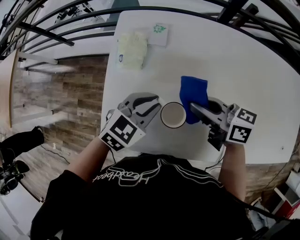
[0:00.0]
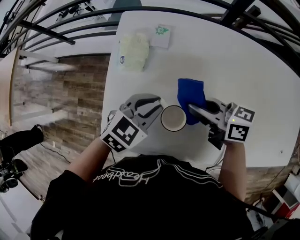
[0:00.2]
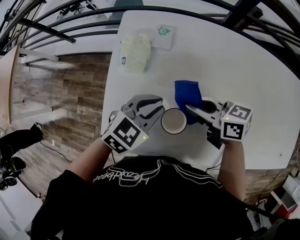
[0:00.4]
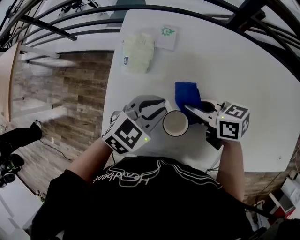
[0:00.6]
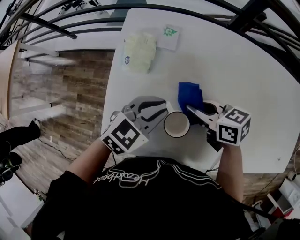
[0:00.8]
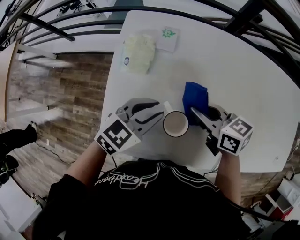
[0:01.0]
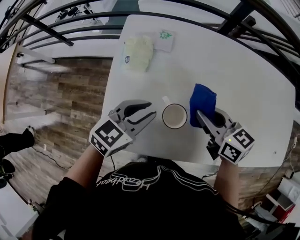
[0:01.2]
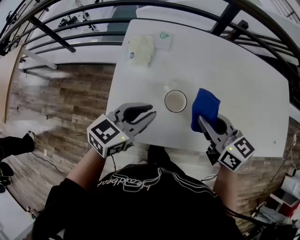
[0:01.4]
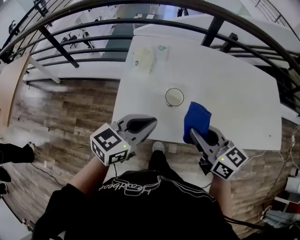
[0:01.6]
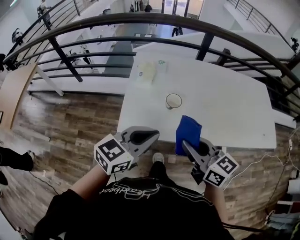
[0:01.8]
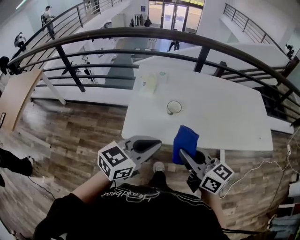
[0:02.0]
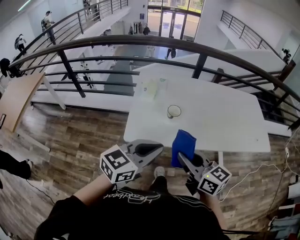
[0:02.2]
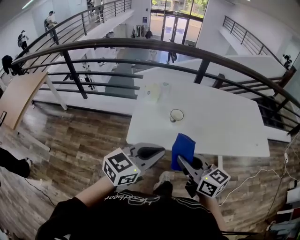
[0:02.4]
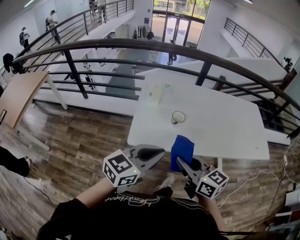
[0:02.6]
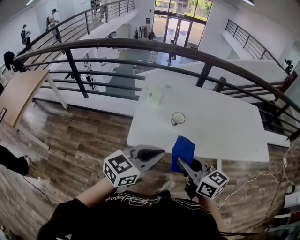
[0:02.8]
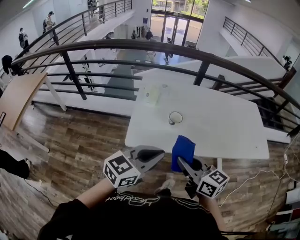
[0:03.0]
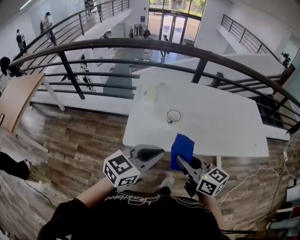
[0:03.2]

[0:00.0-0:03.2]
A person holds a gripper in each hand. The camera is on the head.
0:00.0 to 0:01.6: The left gripper moves some 15 cm, and rotates some 20 degrees, while the right gripper shifts by approximately 15 cm, and turns by about 30 degrees.
0:01.6 to 0:03.2: The right gripper moves backward, roughly 15 cm. Meanwhile the left gripper travels backward and upward by some 20 cm.

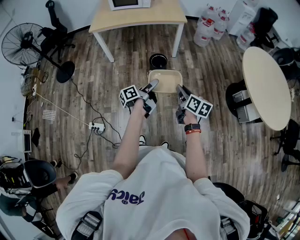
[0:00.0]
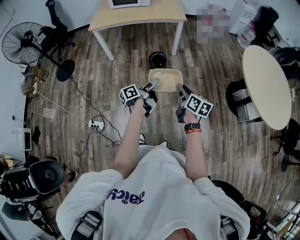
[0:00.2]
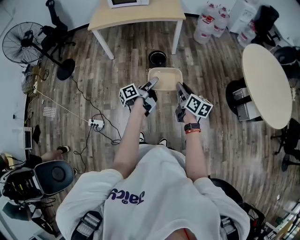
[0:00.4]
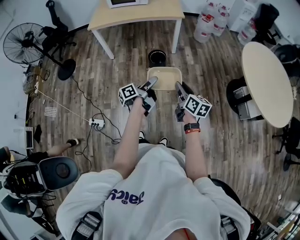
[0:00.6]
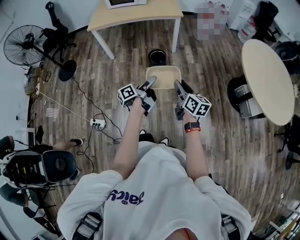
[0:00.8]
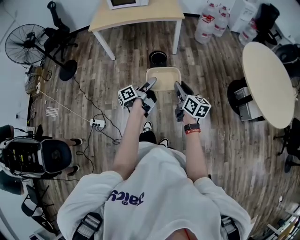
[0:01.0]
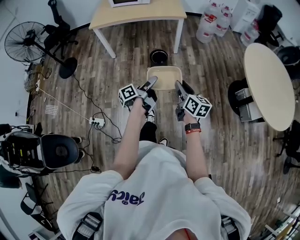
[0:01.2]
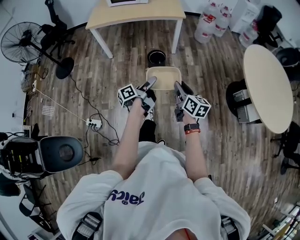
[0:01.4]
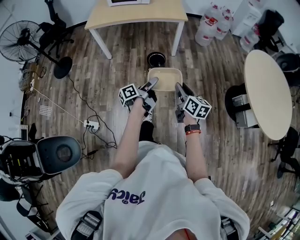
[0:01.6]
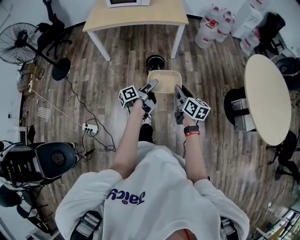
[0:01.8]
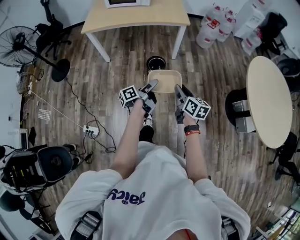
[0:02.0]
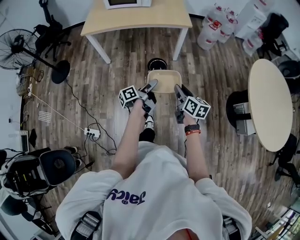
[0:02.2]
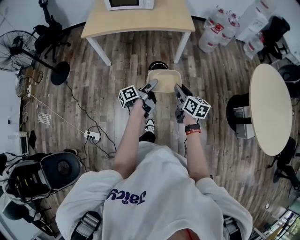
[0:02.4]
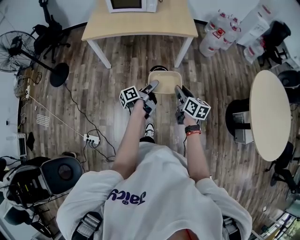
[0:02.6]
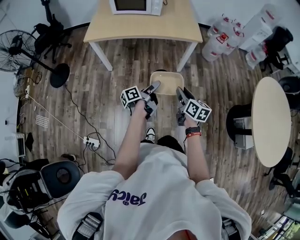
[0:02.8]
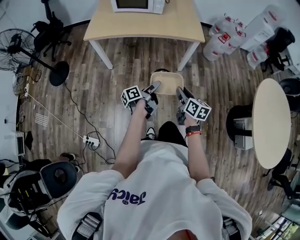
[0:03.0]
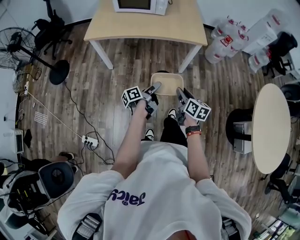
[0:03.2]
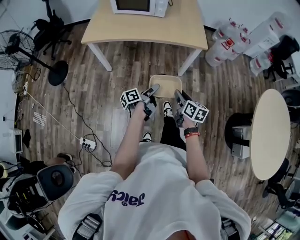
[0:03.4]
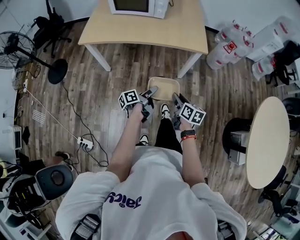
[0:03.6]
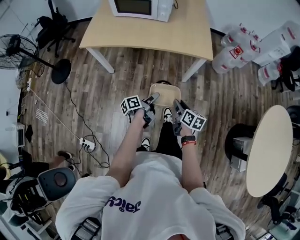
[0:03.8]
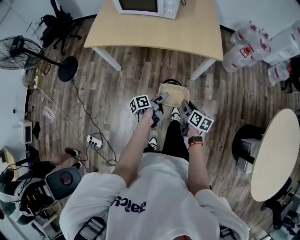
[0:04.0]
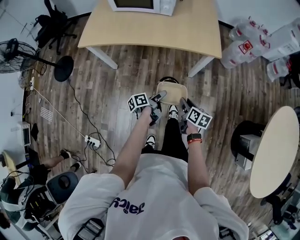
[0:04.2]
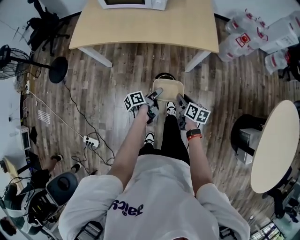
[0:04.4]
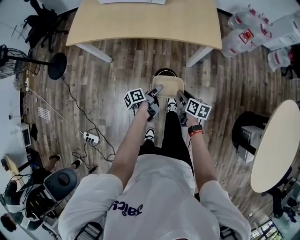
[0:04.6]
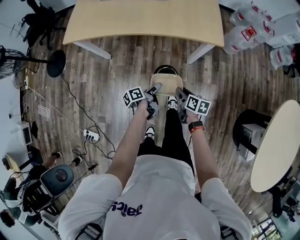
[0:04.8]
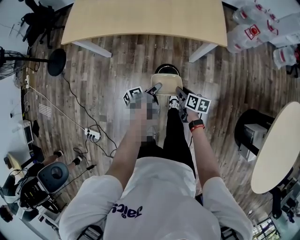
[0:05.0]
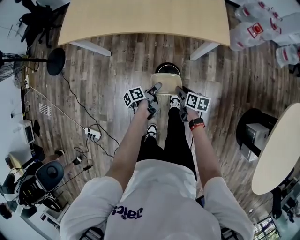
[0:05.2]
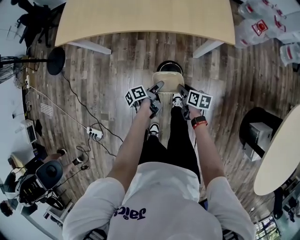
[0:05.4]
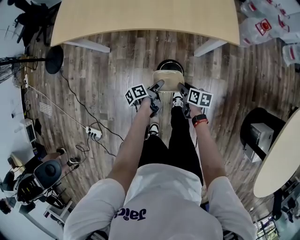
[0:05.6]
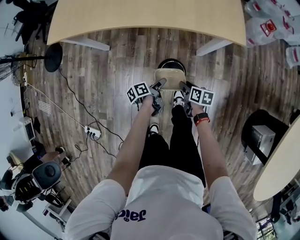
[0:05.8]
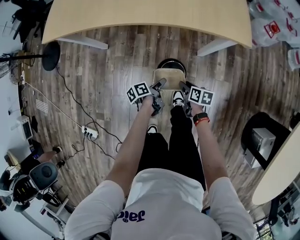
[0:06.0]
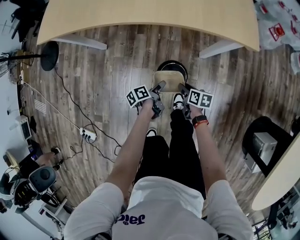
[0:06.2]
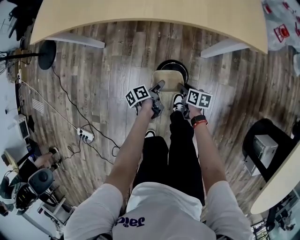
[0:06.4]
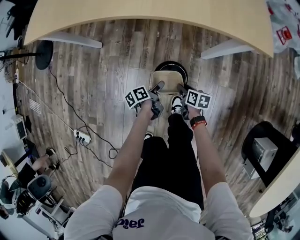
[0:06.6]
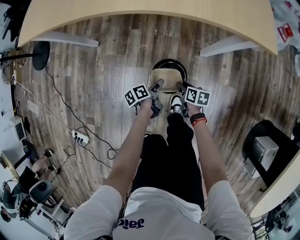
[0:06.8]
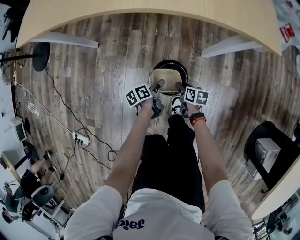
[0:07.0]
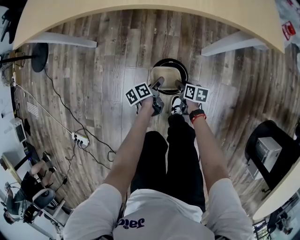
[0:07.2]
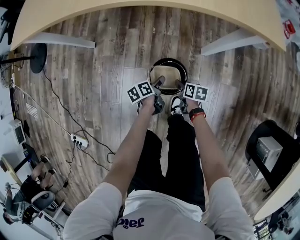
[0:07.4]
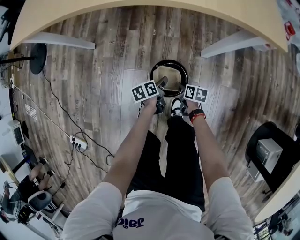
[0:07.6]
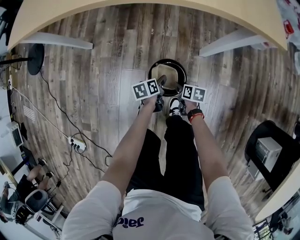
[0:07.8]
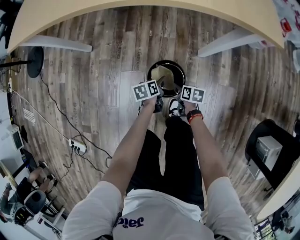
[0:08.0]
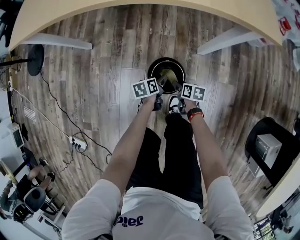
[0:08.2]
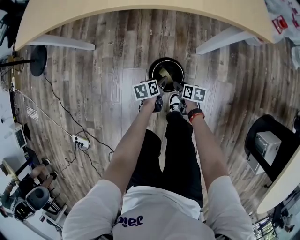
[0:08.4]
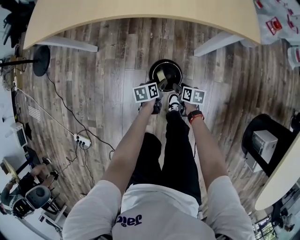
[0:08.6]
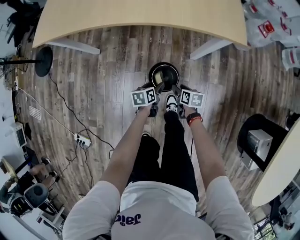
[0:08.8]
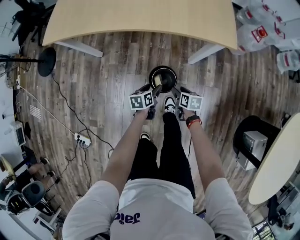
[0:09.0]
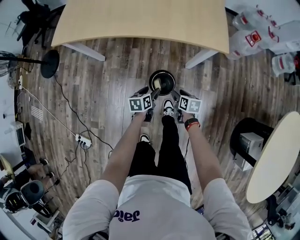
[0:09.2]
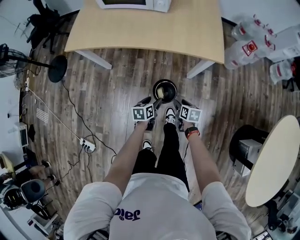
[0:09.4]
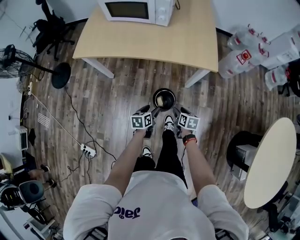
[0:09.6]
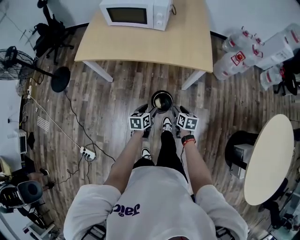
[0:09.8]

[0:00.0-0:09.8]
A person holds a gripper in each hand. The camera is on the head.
0:00.0 to 0:01.4: The right gripper moves some 5 cm.
0:01.4 to 0:02.8: The right gripper changes place by about 40 cm.
0:02.8 to 0:04.2: The right gripper changes place by about 35 cm.
0:04.2 to 0:05.6: The right gripper is displaced downward by some 25 cm.
0:05.6 to 0:07.0: The right gripper goes about 35 cm downward.
0:07.0 to 0:08.4: The right gripper goes downward and returns, some 10 cm each way.
0:08.4 to 0:09.8: The right gripper heads upward, covering some 60 cm, and rotates about 20 degrees.

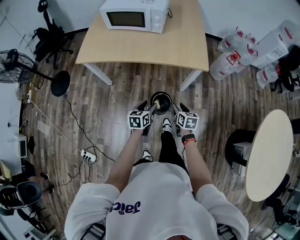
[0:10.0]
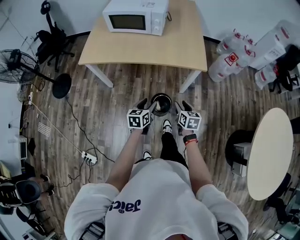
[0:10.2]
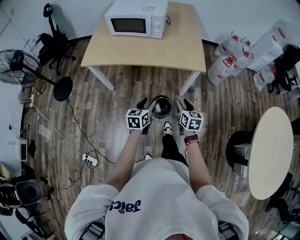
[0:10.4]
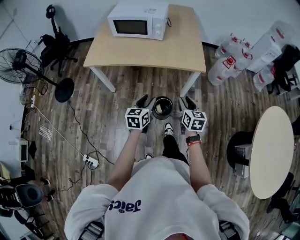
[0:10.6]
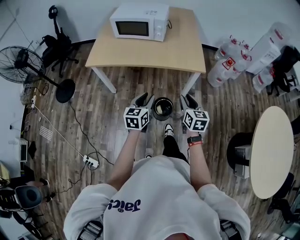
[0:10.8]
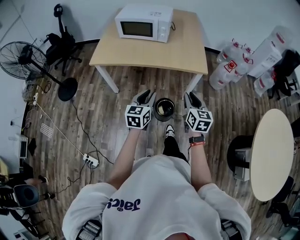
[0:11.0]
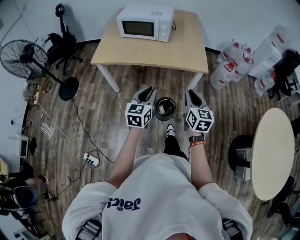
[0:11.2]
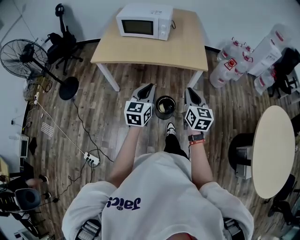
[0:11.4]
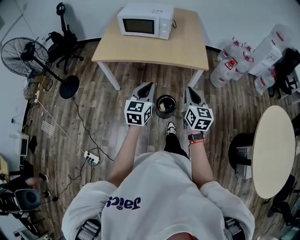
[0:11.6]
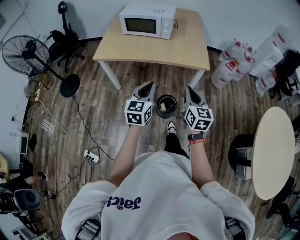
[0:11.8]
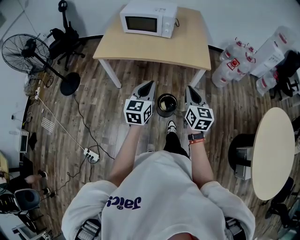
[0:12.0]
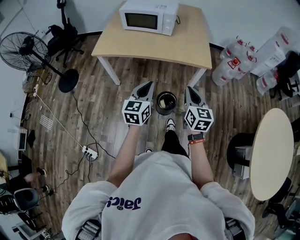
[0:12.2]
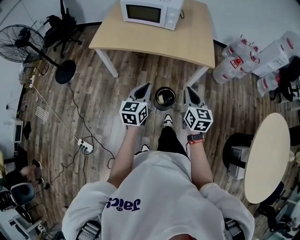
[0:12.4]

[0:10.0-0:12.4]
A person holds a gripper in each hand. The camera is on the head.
0:10.0 to 0:11.2: The right gripper heads upward, covering some 25 cm, rotates roughly 30 degrees, and closes up.
0:11.2 to 0:12.4: The right gripper shifts by some 5 cm.

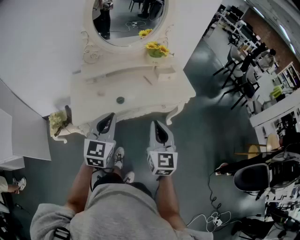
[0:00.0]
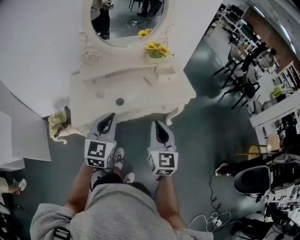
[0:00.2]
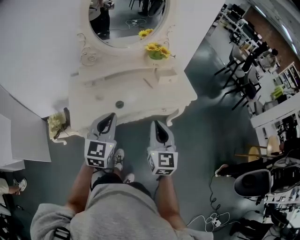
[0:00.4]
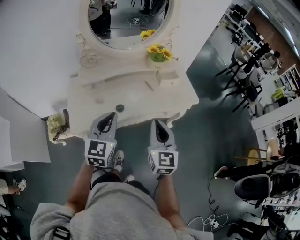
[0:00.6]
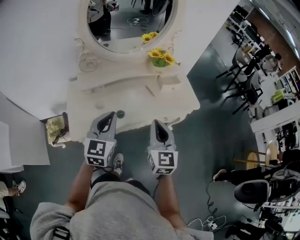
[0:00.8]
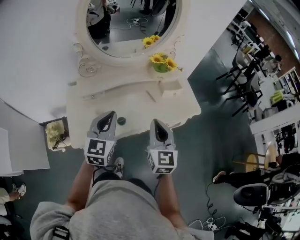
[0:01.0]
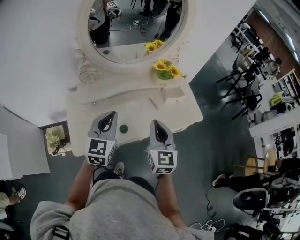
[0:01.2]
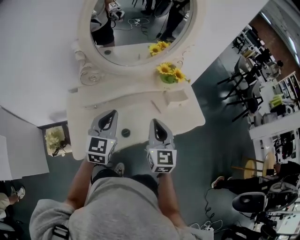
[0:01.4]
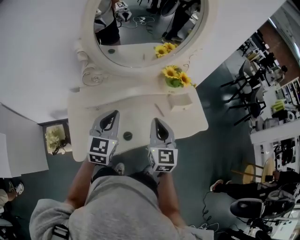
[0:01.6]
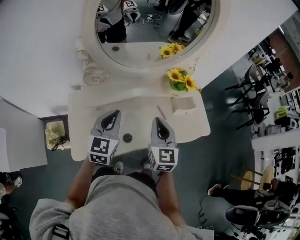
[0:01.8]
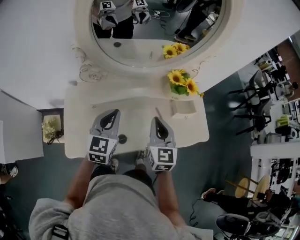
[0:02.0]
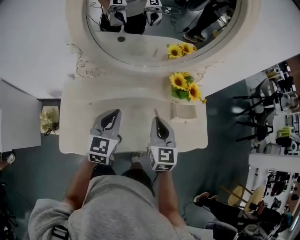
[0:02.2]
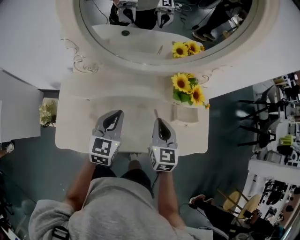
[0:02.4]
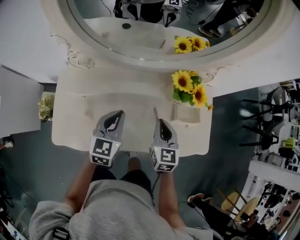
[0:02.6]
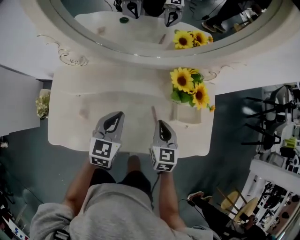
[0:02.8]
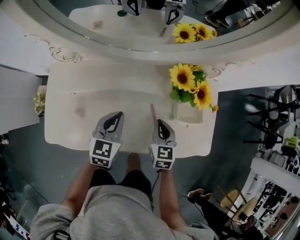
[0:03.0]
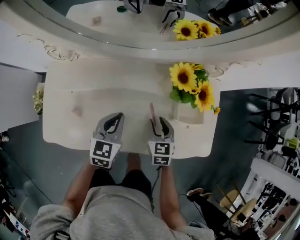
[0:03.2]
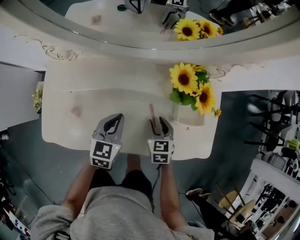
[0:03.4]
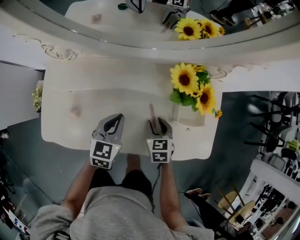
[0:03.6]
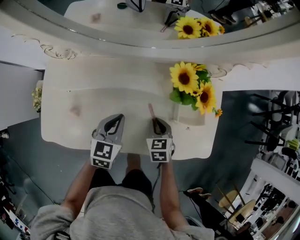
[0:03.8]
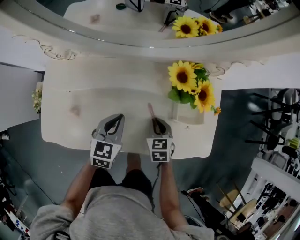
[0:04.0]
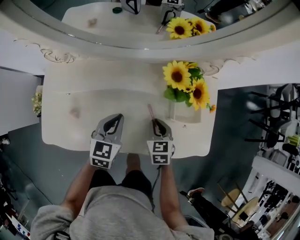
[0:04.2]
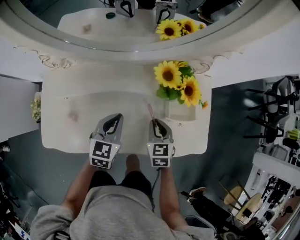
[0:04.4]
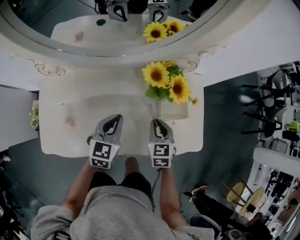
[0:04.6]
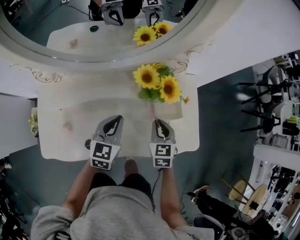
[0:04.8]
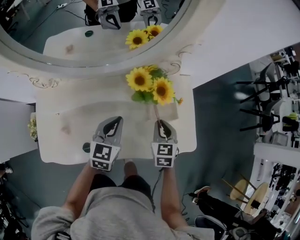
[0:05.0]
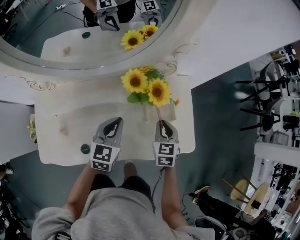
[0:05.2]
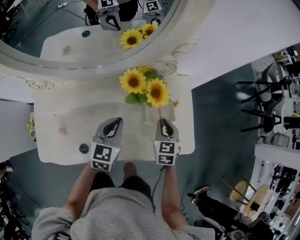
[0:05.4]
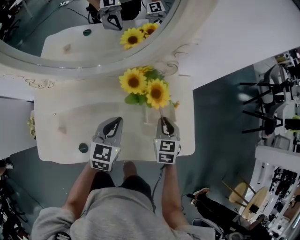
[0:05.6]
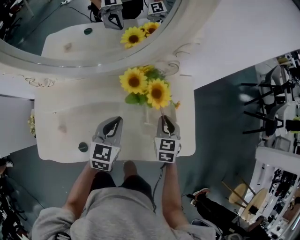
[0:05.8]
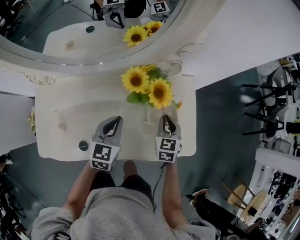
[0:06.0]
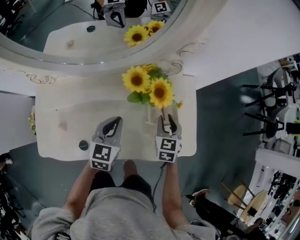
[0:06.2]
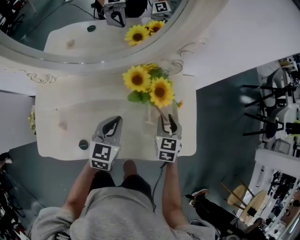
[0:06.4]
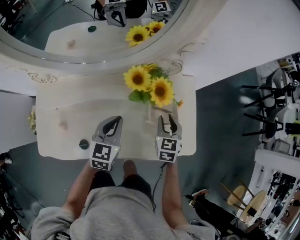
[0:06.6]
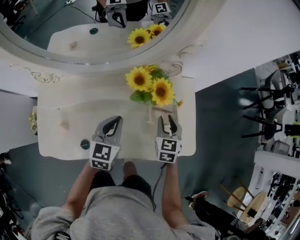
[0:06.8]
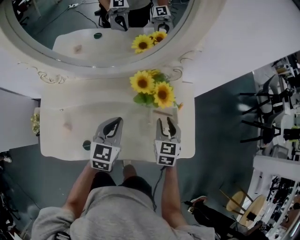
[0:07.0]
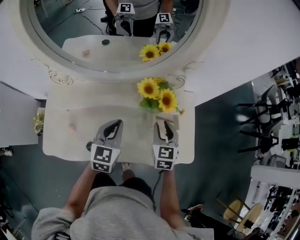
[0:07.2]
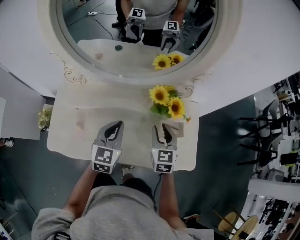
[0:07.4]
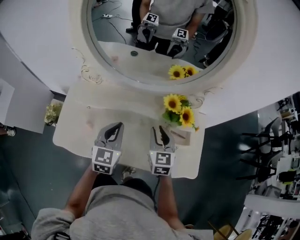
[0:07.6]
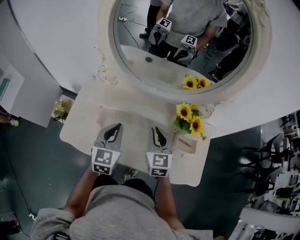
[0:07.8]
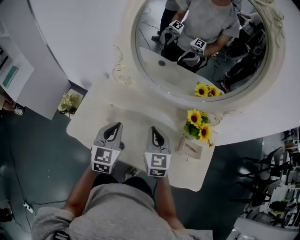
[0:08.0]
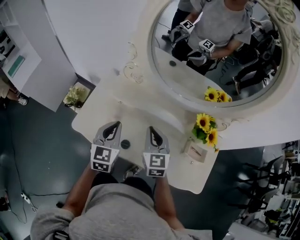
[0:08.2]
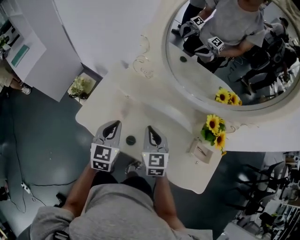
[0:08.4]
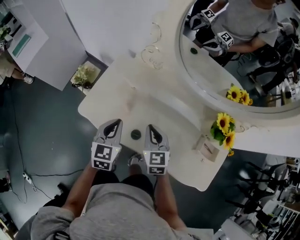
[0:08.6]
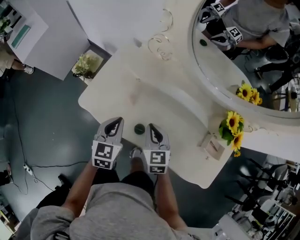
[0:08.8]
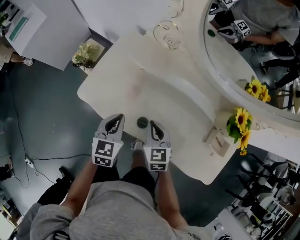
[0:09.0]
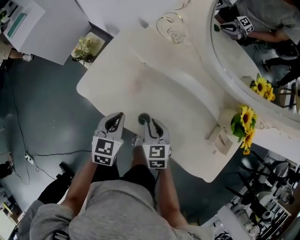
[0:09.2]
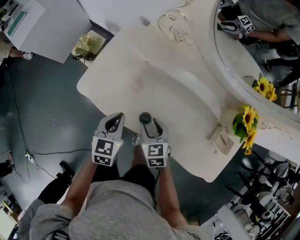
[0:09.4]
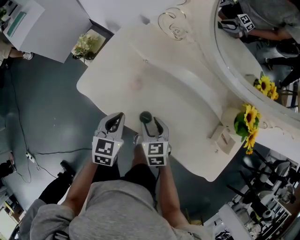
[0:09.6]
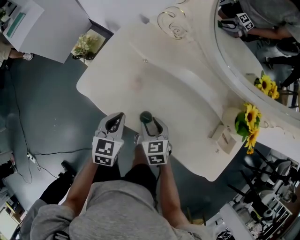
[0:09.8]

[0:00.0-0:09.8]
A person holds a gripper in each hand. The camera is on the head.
0:00.0 to 0:01.4: Both grippers move forward, about 25 cm.
0:01.4 to 0:02.8: The two grippers go about 25 cm downward, forward and to the right. The left gripper turns by approximately 20 degrees. Meanwhile the right gripper rotates approximately 30 degrees.
0:02.8 to 0:04.2: The left gripper goes some 5 cm downward, while the right gripper moves downward, some 10 cm, and opens, then closes once more.
0:04.2 to 0:05.6: The left gripper travels to the right by roughly 10 cm. The right gripper goes roughly 15 cm to the right and forward.
0:05.6 to 0:07.0: The right gripper opens.
0:07.0 to 0:08.4: The right gripper moves approximately 35 cm, swivels about 40 degrees, and closes its fingers. The left gripper ends up about 30 cm from where it was, and swivels about 30 degrees.
0:08.4 to 0:09.8: The grippers both shift downward and backward by about 15 cm. The right gripper swivels roughly 30 degrees, and opens its fingers.
